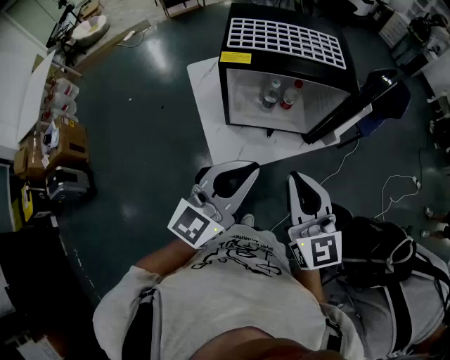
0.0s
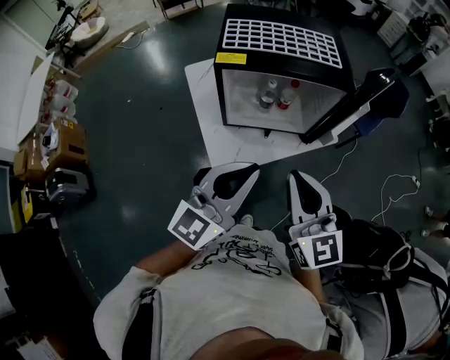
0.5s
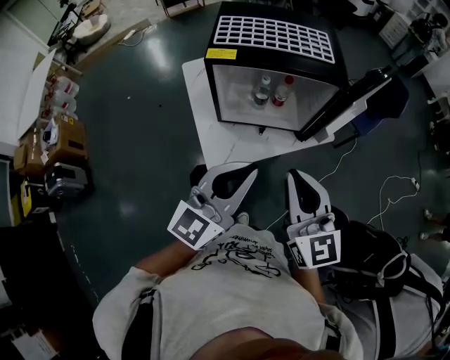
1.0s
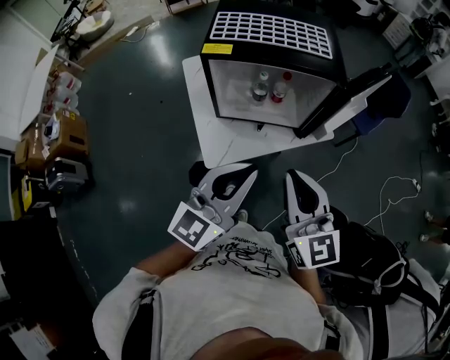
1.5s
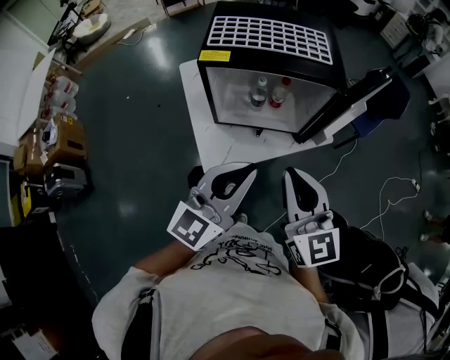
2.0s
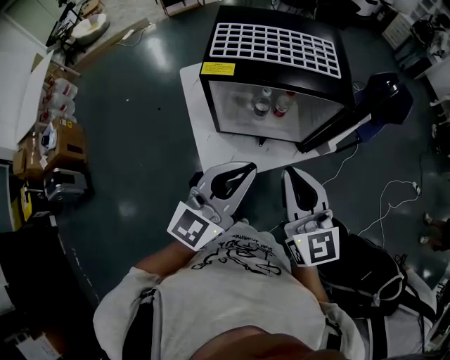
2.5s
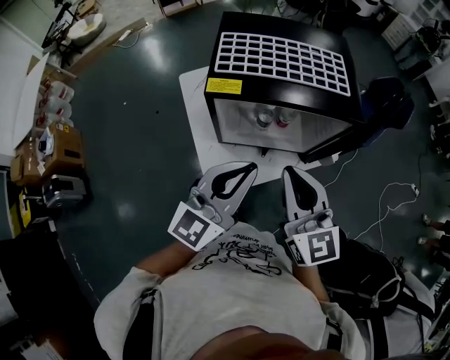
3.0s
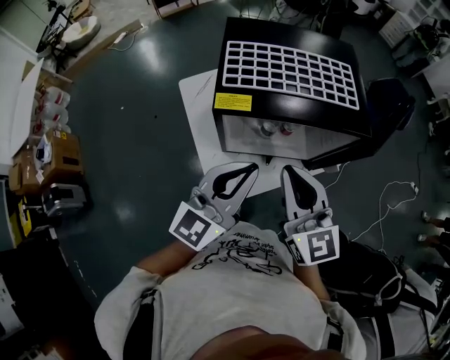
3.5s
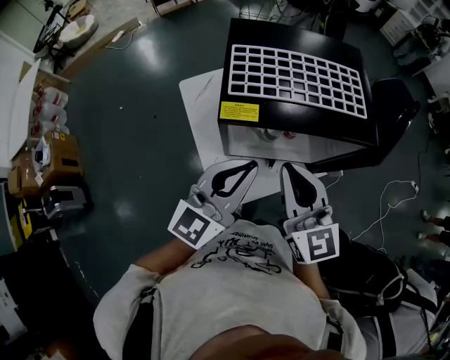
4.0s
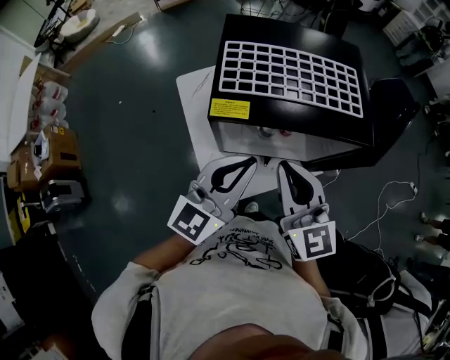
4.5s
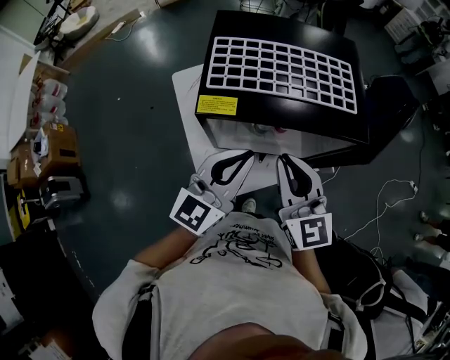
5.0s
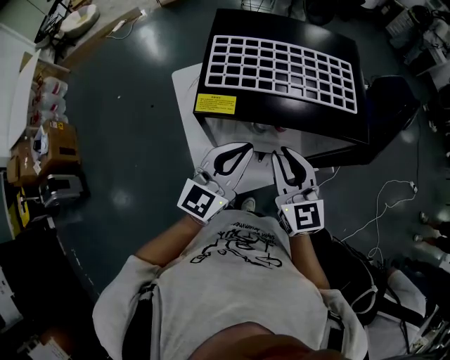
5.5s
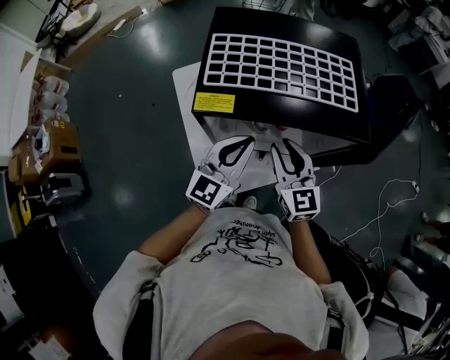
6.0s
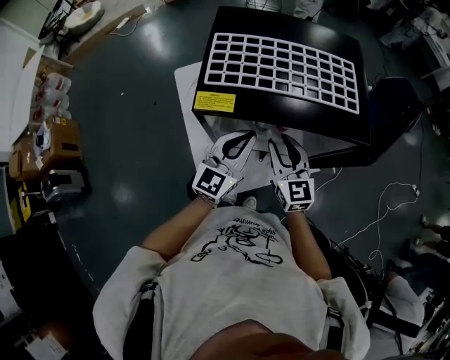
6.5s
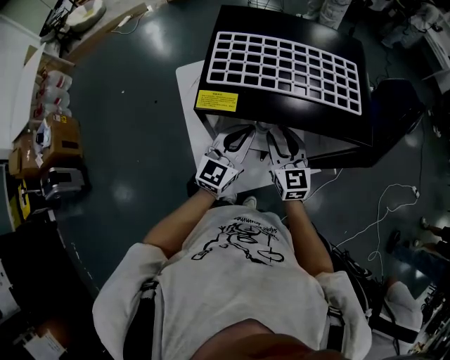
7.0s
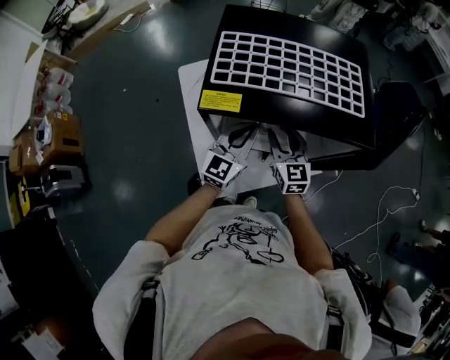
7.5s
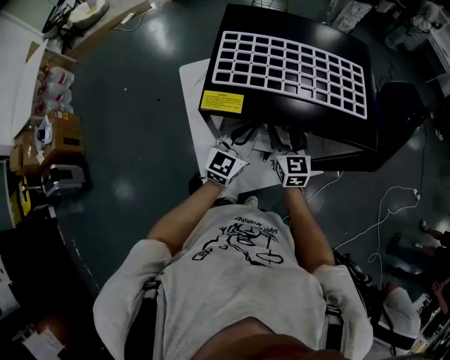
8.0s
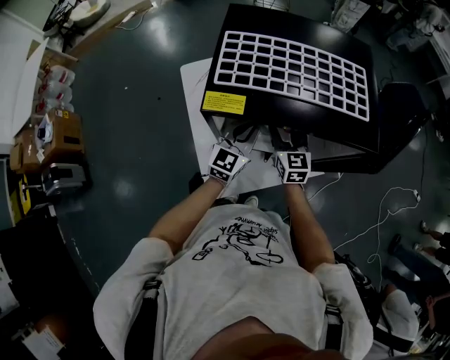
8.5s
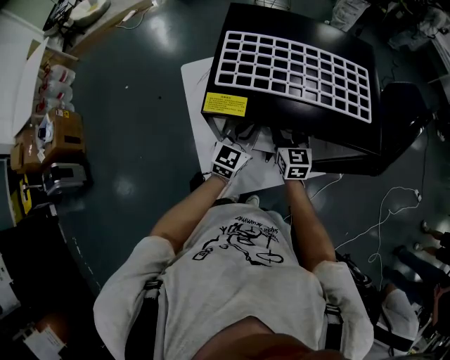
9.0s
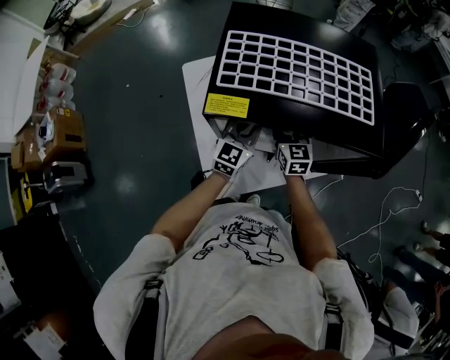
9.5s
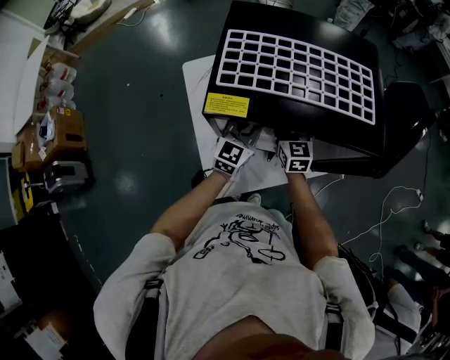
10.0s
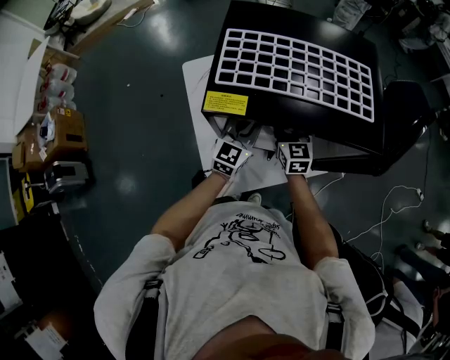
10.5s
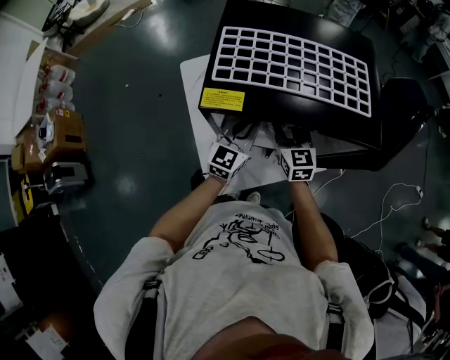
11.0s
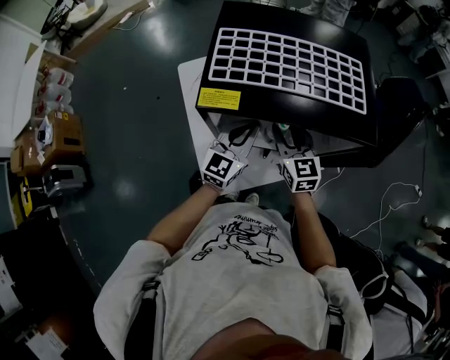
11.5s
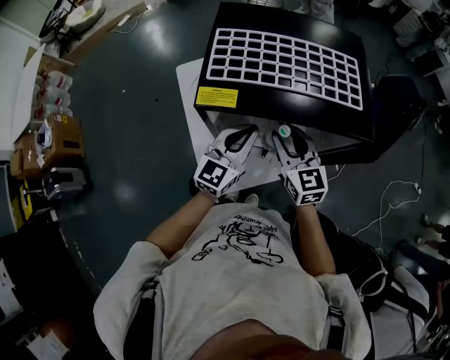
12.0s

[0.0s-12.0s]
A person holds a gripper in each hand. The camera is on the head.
0.0s to 2.0s: The left gripper is displaced to the right by roughly 5 cm. Meanwhile the right gripper shifts by roughly 5 cm.
2.0s to 4.0s: Both grippers travel together forward and to the left, some 20 cm.
4.0s to 6.0s: The left gripper travels downward and forward by roughly 10 cm, while the right gripper goes approximately 15 cm downward, forward and to the right.
6.0s to 8.0s: The grippers both shift downward and forward by about 10 cm.
8.0s to 10.0s: The right gripper moves roughly 5 cm.
10.0s to 12.0s: The grippers both shift upward and backward by some 15 cm.

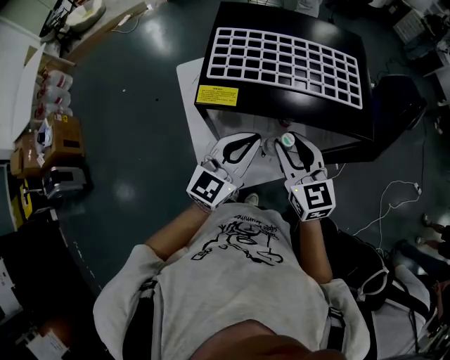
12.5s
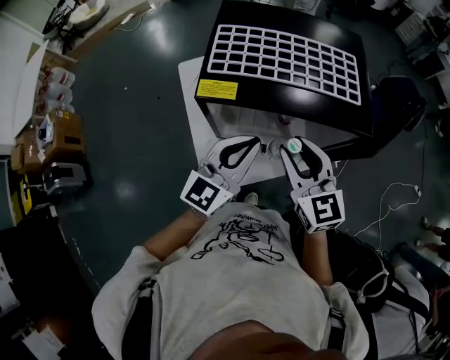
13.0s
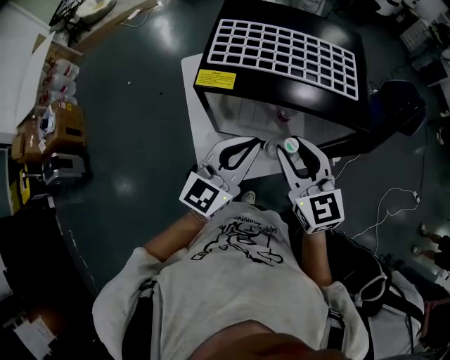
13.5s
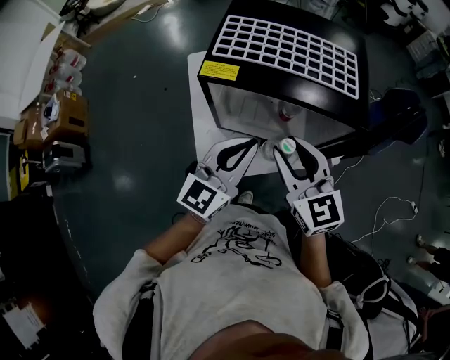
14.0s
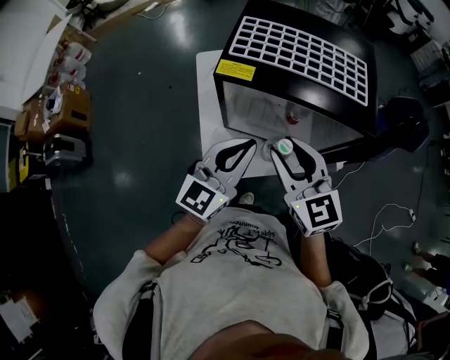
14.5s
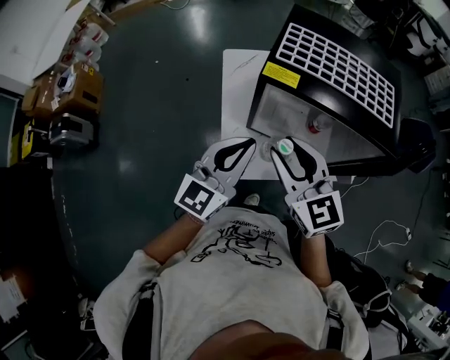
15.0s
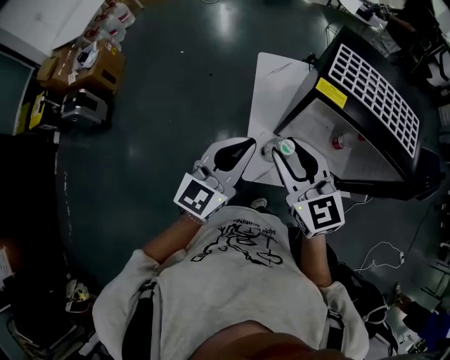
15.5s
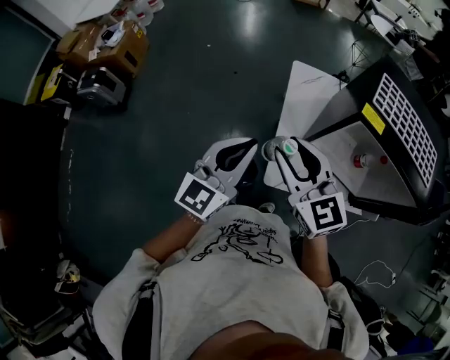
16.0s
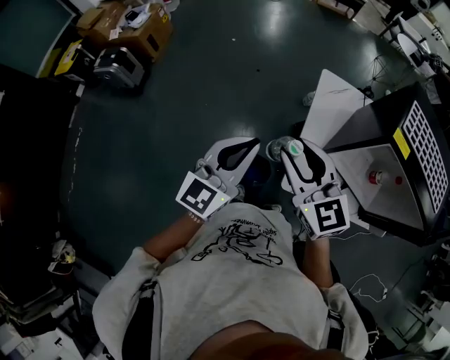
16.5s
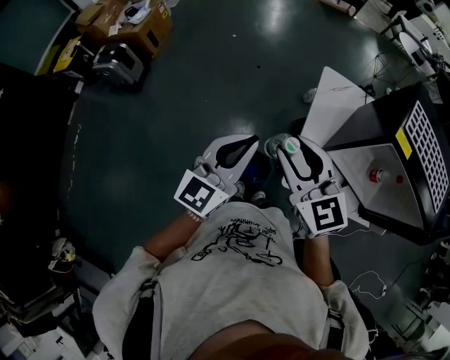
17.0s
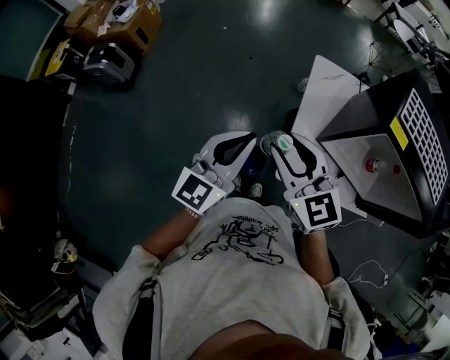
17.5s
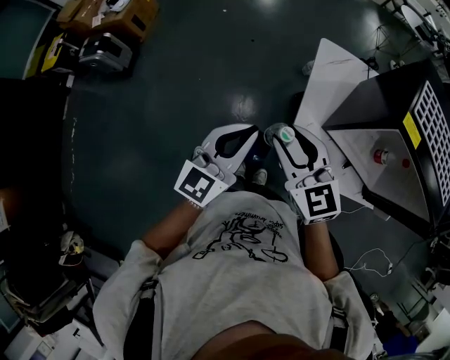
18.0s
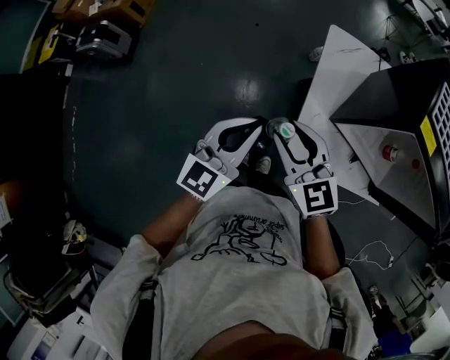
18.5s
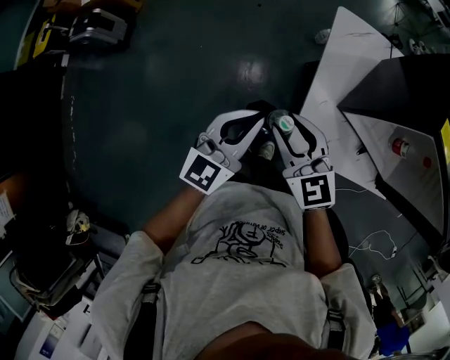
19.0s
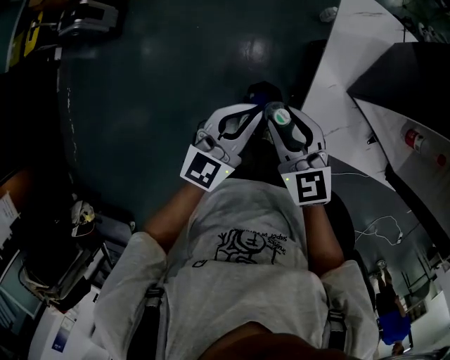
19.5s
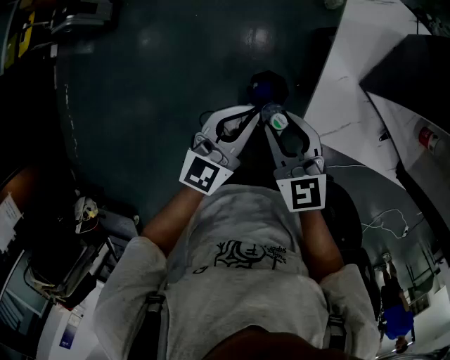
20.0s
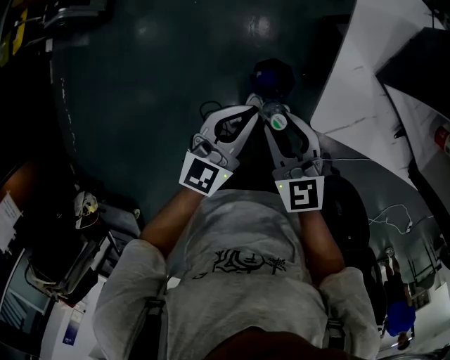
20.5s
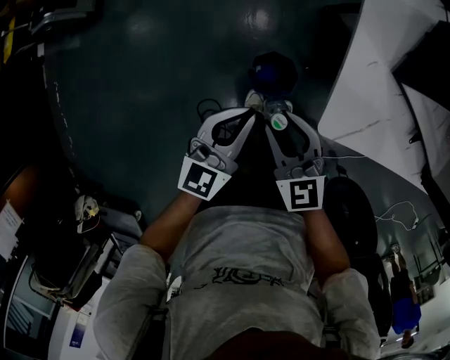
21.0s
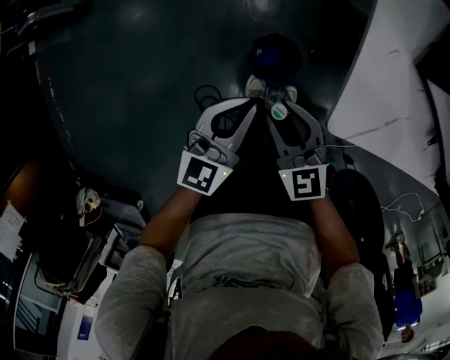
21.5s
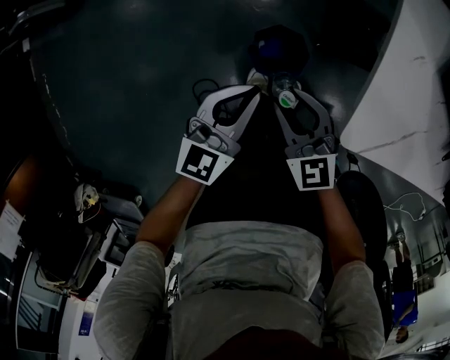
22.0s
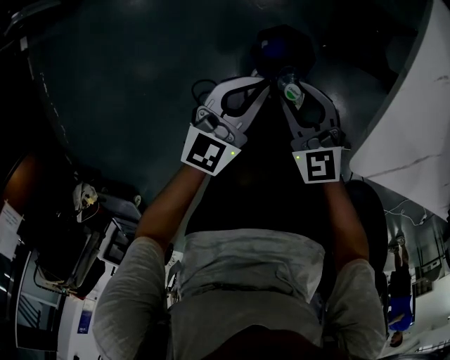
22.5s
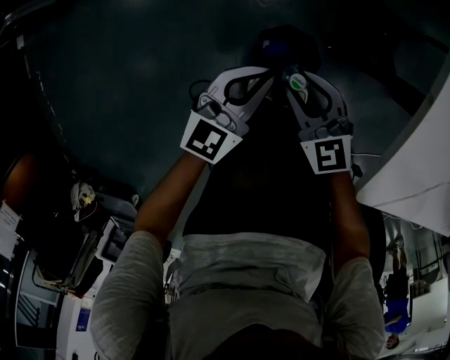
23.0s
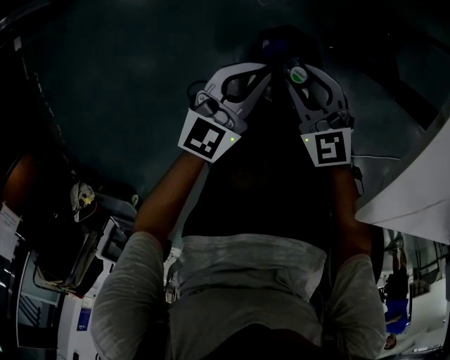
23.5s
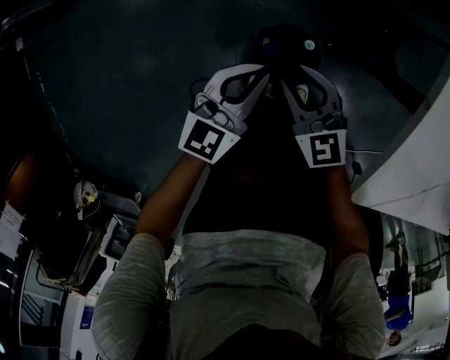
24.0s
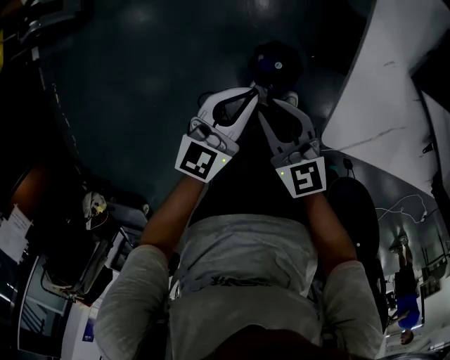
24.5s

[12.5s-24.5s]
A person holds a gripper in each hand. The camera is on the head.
12.5s to 14.5s: The right gripper goes some 10 cm backward and upward. Meanwhile the left gripper moves backward, approximately 10 cm.
14.5s to 16.5s: The right gripper shifts by about 35 cm, and rotates about 30 degrees. The left gripper shifts by roughly 35 cm, and swivels approximately 30 degrees.
16.5s to 18.5s: The grippers both shift downward by about 10 cm.
18.5s to 20.5s: Both grippers travel together downward, roughly 20 cm.
20.5s to 22.5s: The grippers both shift downward by roughly 25 cm.
22.5s to 24.5s: Both grippers travel together upward, about 10 cm.

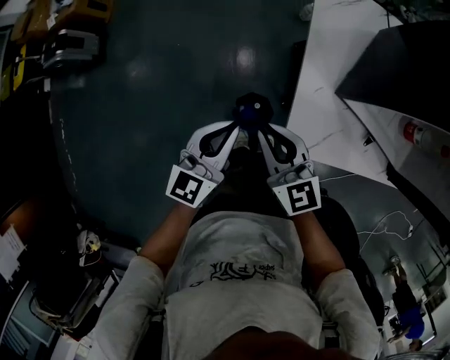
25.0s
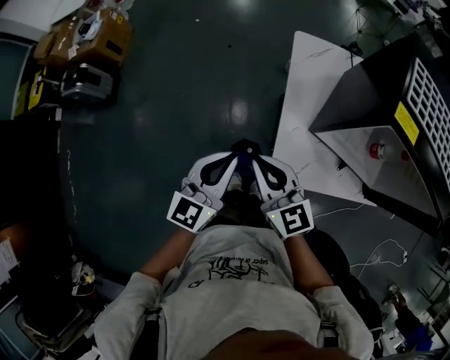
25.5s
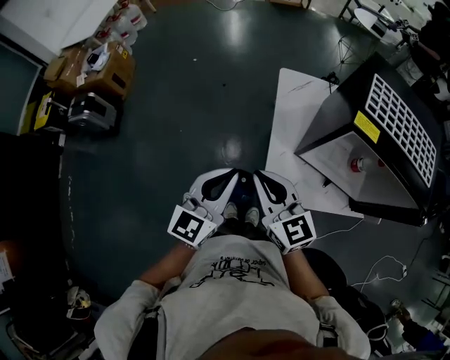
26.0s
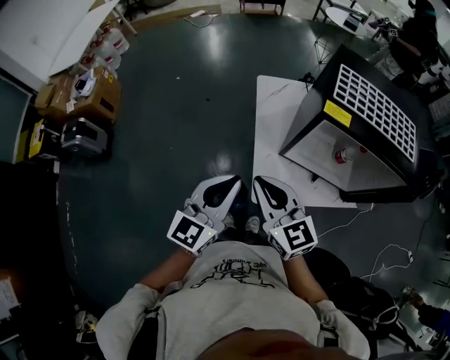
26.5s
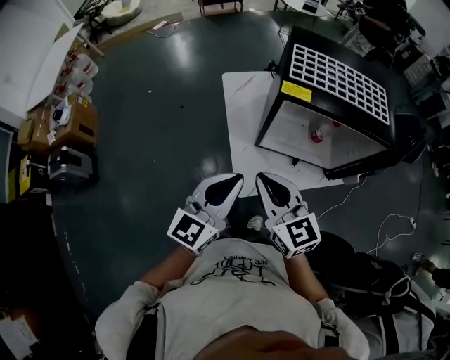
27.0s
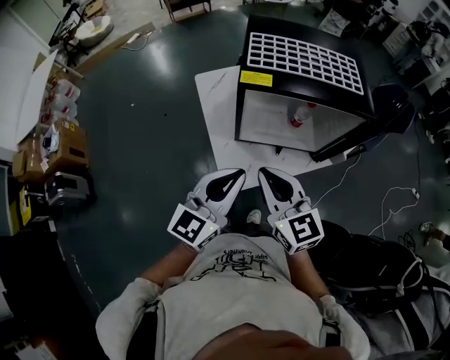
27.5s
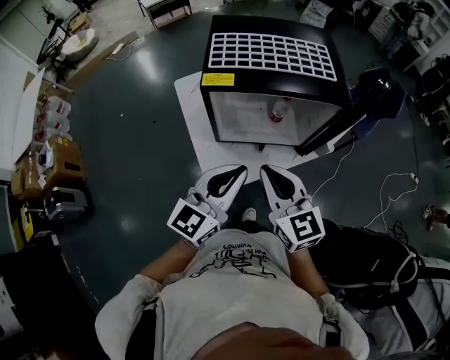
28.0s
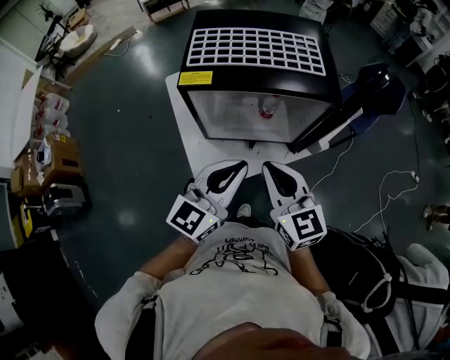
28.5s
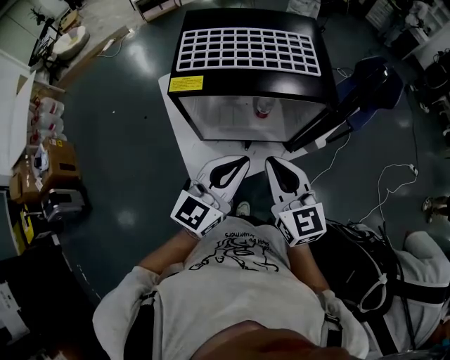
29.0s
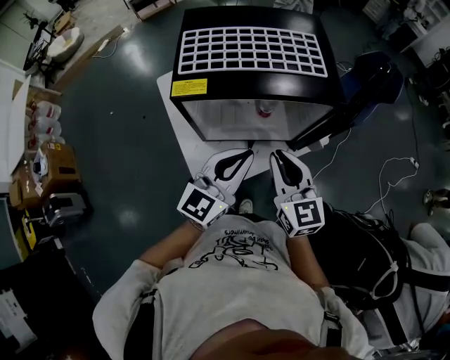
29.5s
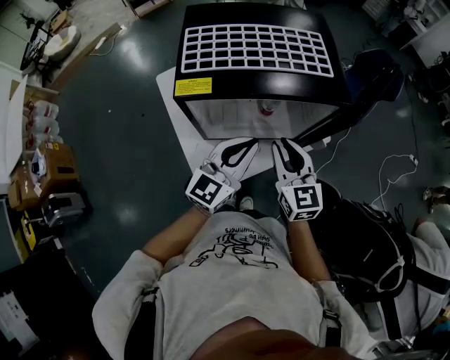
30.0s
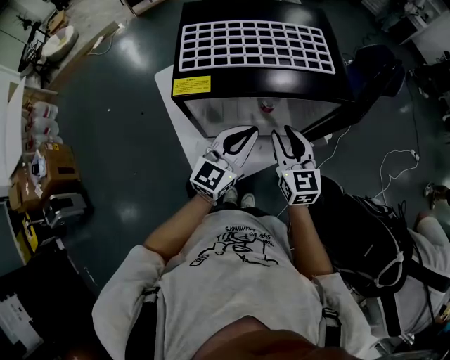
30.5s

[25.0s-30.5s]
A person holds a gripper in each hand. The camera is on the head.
25.0s to 27.0s: Both grippers move upward and to the right, approximately 30 cm. The right gripper rotates about 20 degrees. Meanwhile the left gripper changes its angle by roughly 30 degrees.
27.0s to 28.5s: Both grippers travel together to the right, approximately 20 cm.
28.5s to 30.5s: Both grippers travel together forward and downward, about 15 cm. The right gripper opens up.
